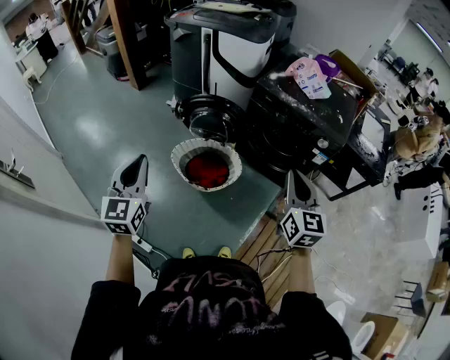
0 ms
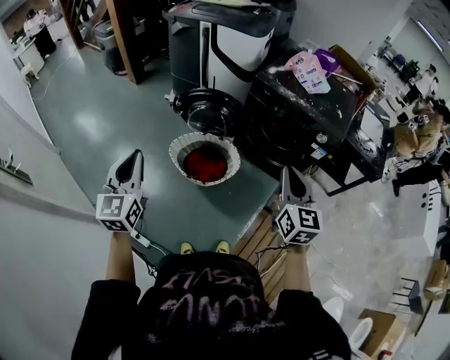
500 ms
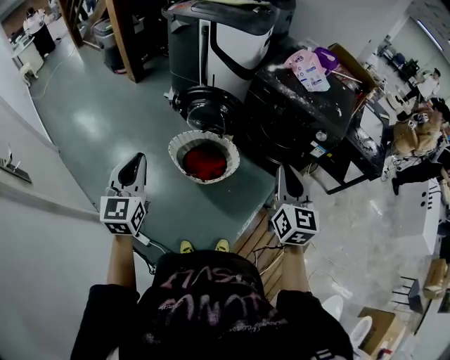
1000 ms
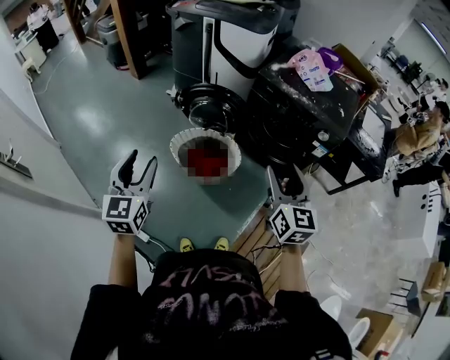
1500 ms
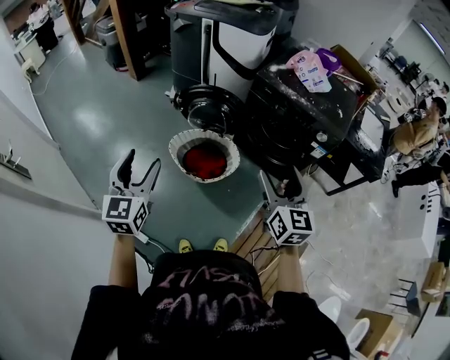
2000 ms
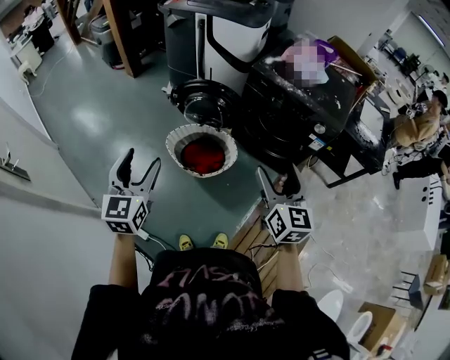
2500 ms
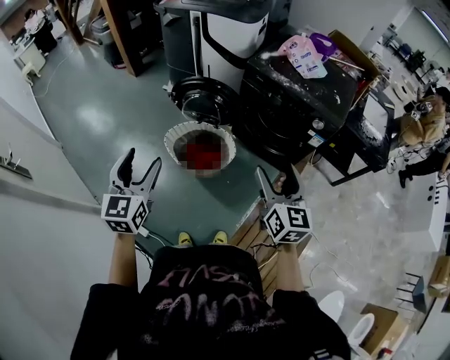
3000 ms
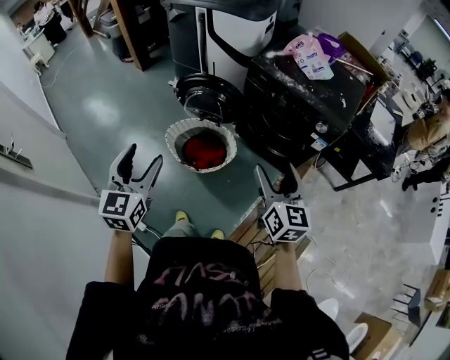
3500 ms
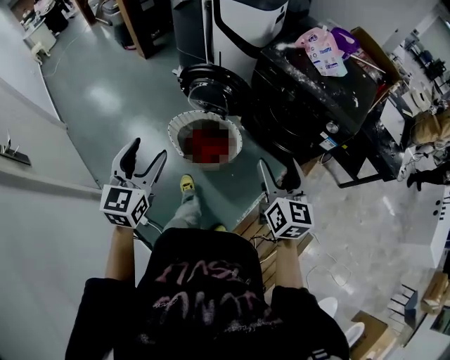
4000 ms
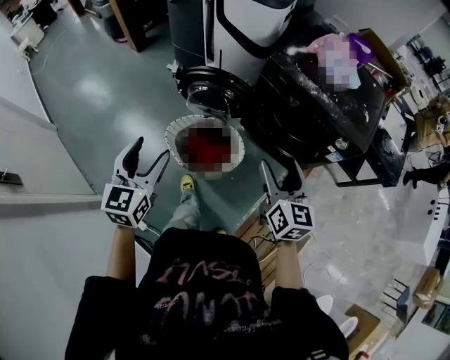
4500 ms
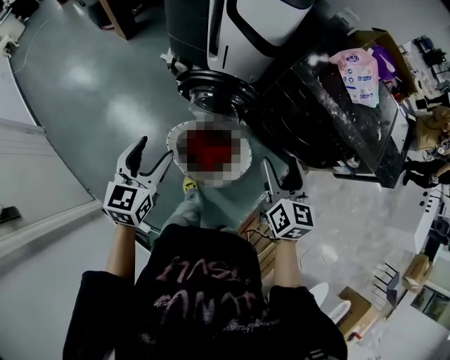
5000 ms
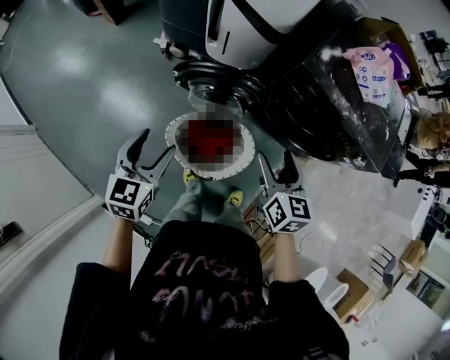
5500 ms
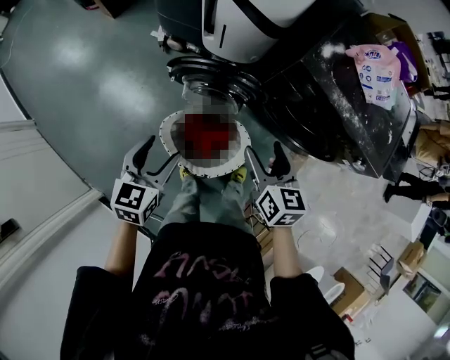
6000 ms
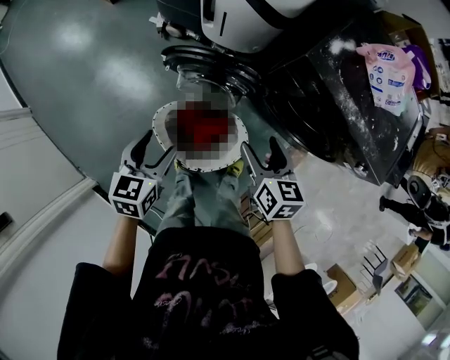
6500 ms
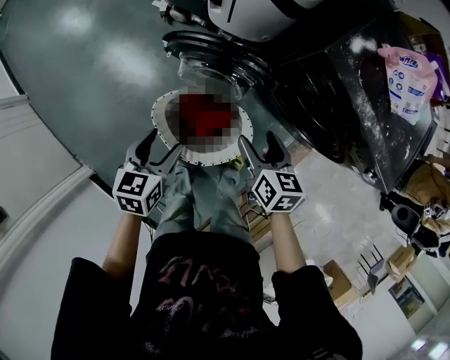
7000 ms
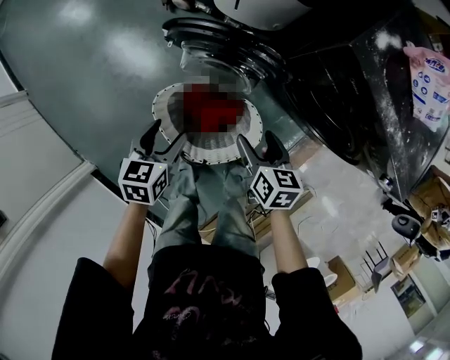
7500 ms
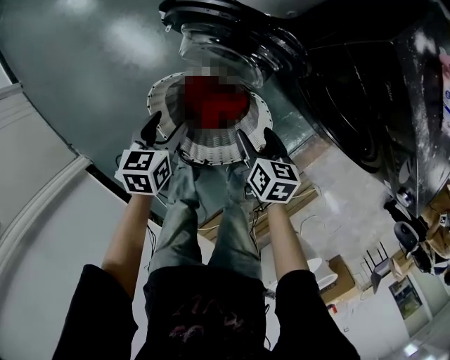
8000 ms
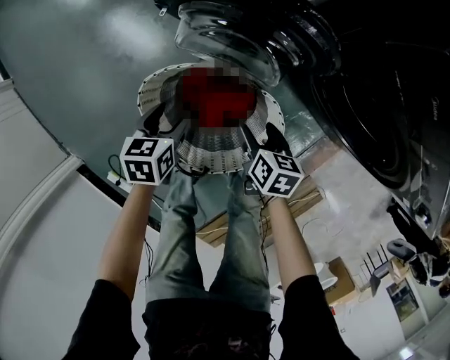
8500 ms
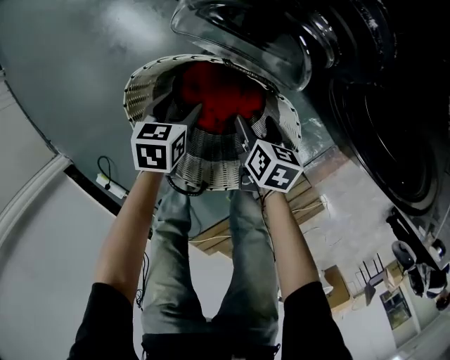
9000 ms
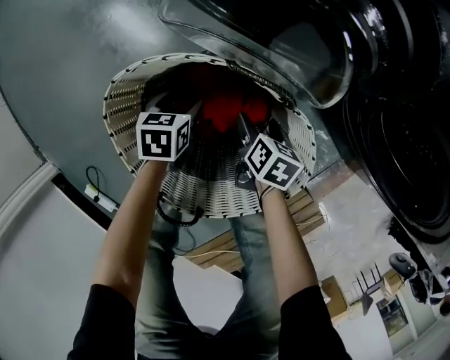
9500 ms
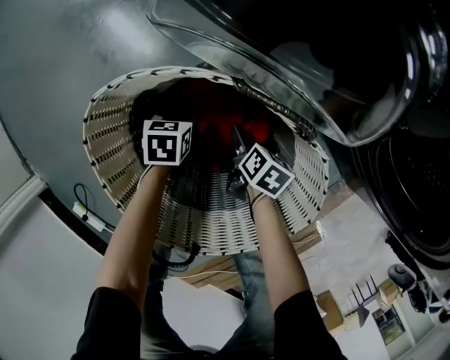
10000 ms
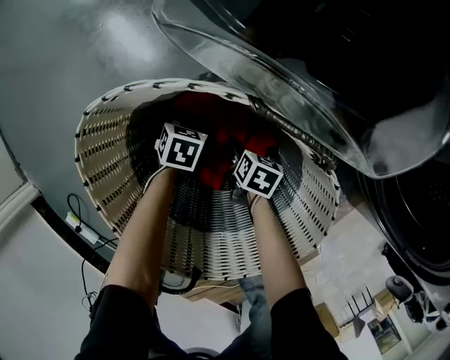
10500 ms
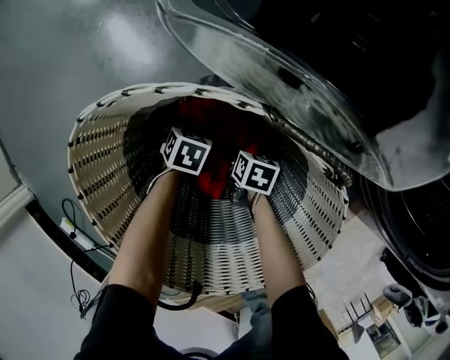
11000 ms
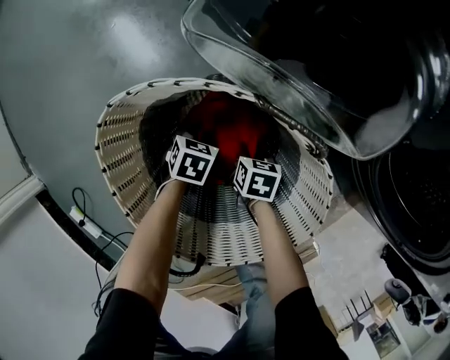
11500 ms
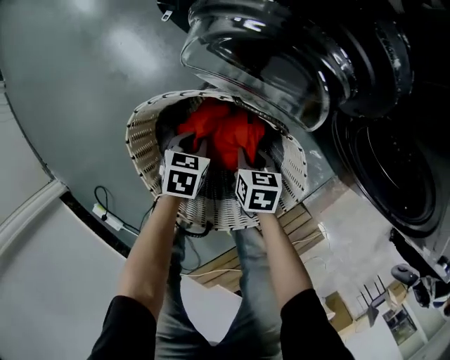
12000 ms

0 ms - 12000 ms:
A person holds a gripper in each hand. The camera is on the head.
0 ms - 2000 ms: The left gripper opens; the right gripper opens up.
2000 ms - 4000 ms: The left gripper heads to the right, covering approximately 10 cm; the right gripper travels downward, to the right and forward by roughly 10 cm.
4000 ms - 6000 ms: The left gripper moves forward and downward, about 35 cm, and swivels some 30 degrees; the right gripper moves forward, to the left and downward, approximately 35 cm, and swivels approximately 20 degrees.
6000 ms - 8000 ms: Both grippers travel together downward, about 30 cm. The right gripper turns by about 20 degrees. The left gripper changes its angle by approximately 30 degrees.
8000 ms - 10000 ms: Both grippers travel together downward, approximately 40 cm.
10000 ms - 12000 ms: Both grippers move upward, about 15 cm. The right gripper changes its angle by about 30 degrees, and closes. The left gripper closes up.

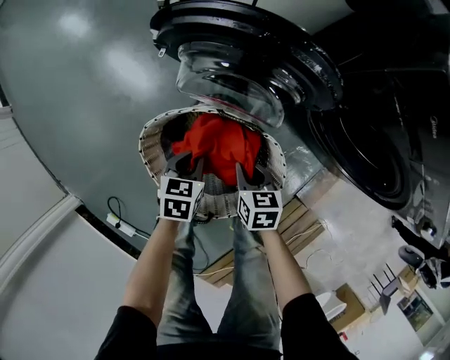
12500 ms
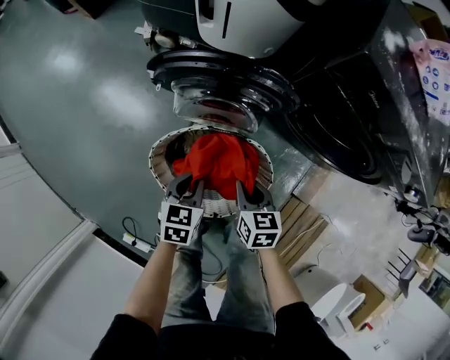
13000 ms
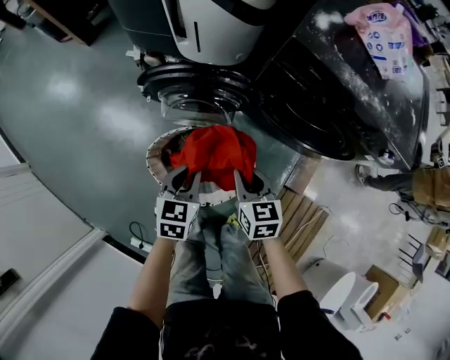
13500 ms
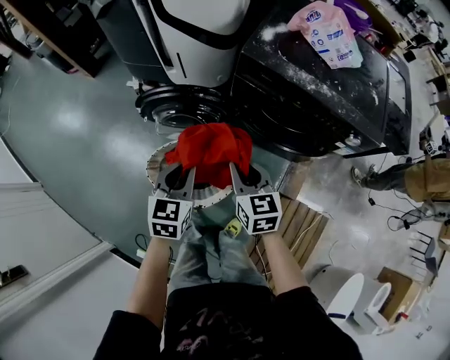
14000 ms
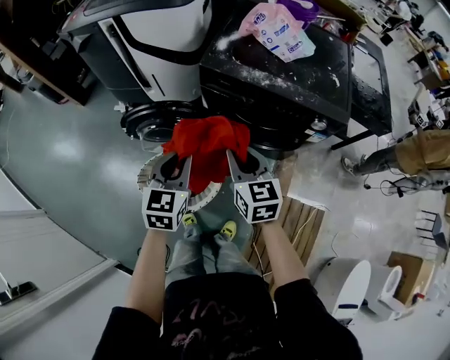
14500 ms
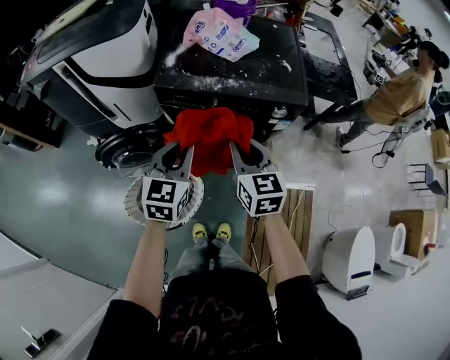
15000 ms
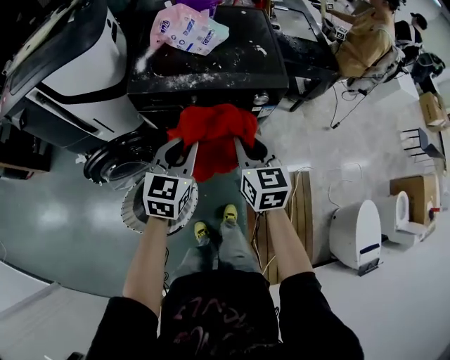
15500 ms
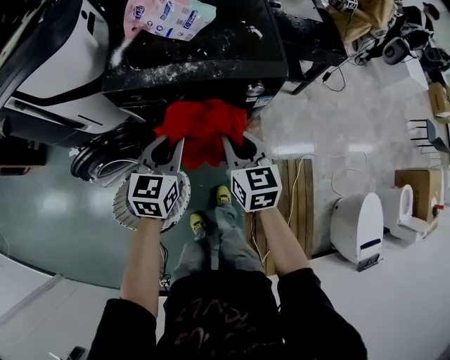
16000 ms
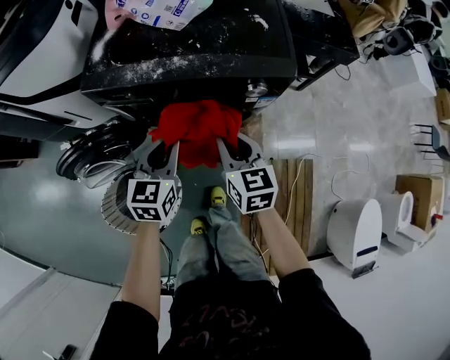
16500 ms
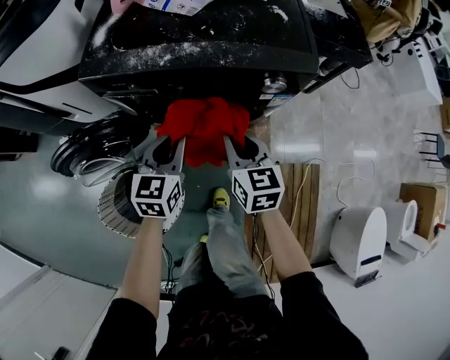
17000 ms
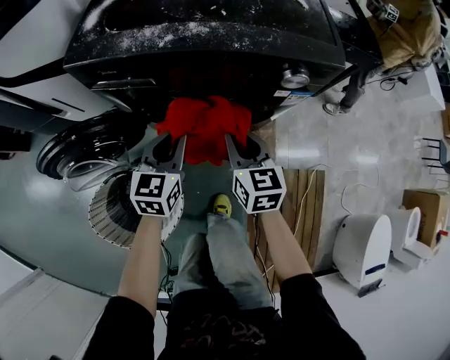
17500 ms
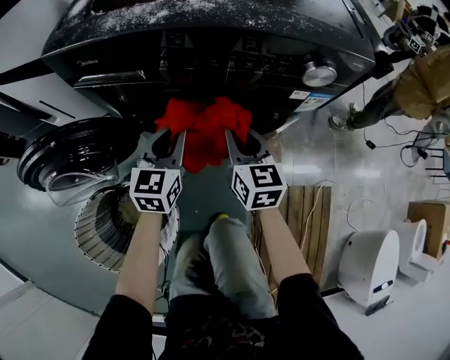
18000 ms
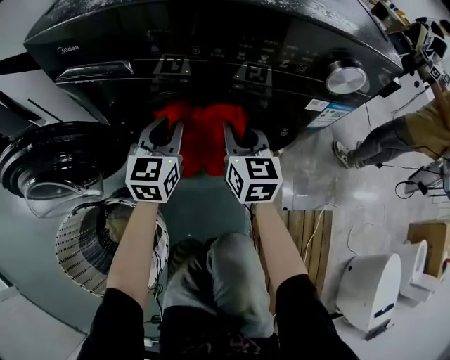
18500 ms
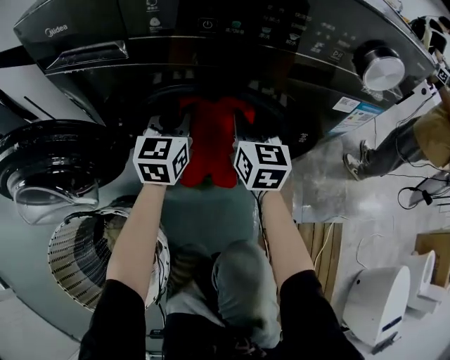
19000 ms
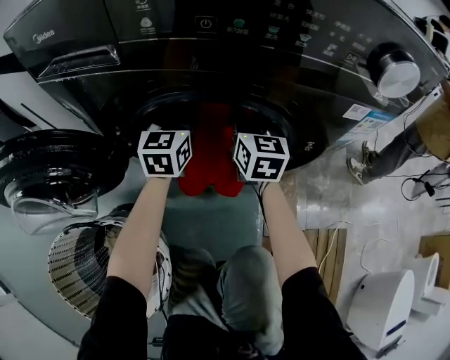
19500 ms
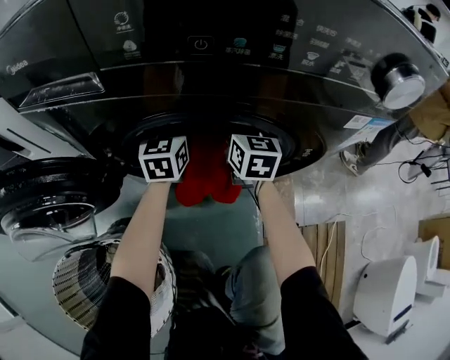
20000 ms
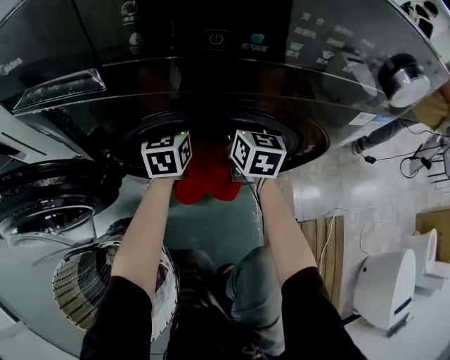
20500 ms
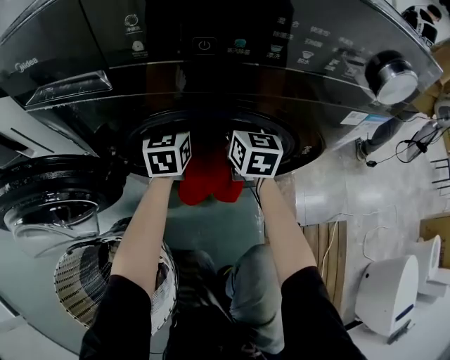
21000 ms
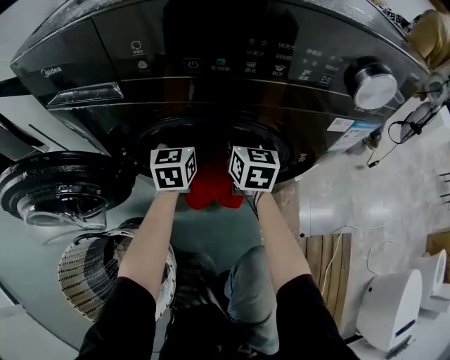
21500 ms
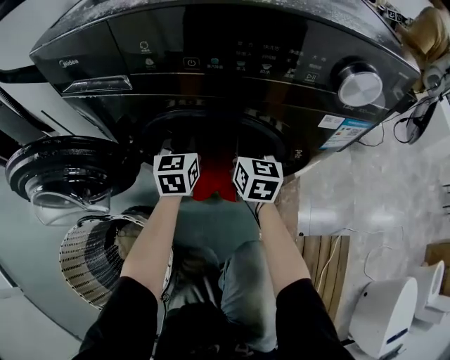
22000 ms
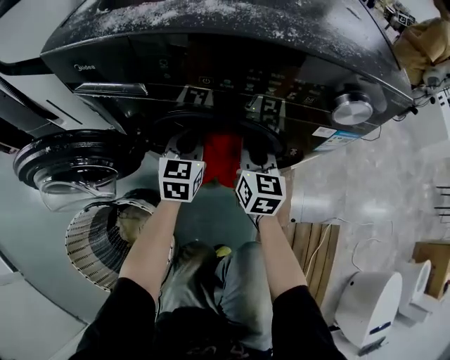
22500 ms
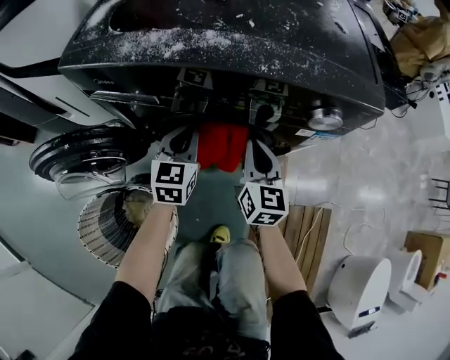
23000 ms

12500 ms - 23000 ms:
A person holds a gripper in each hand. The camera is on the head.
12500 ms - 14500 ms: The two grippers go approximately 50 cm upward. The left gripper changes its angle by some 40 degrees, while the right gripper tilts its fingers some 30 degrees upward.
14500 ms - 16500 ms: The right gripper moves about 25 cm. Meanwhile the left gripper shifts by about 25 cm.
16500 ms - 19000 ms: The grippers both shift downward and forward by roughly 35 cm.
19000 ms - 21000 ms: The right gripper goes roughly 5 cm forward, and opens; the left gripper shifts some 10 cm forward and downward, and opens up.
21000 ms - 23000 ms: The two grippers go about 20 cm backward and upward. The right gripper closes its fingers; the left gripper closes its fingers.

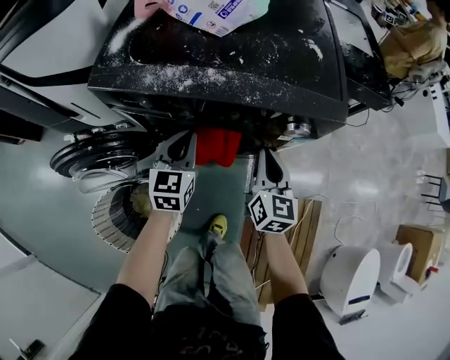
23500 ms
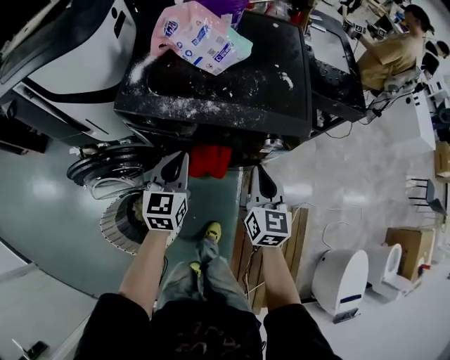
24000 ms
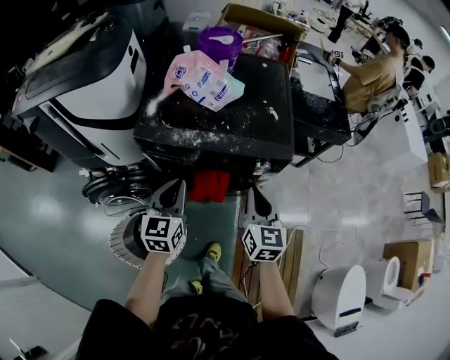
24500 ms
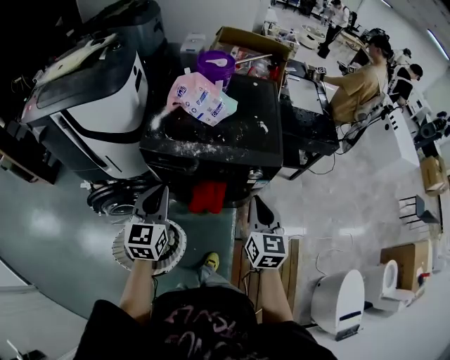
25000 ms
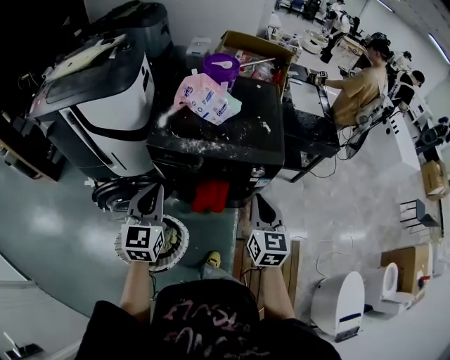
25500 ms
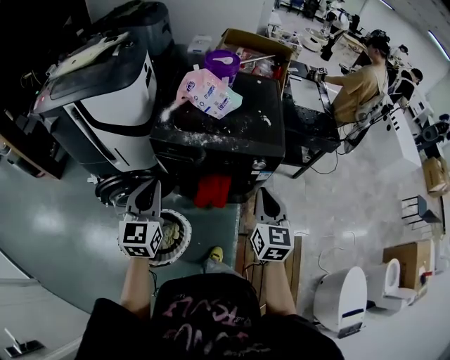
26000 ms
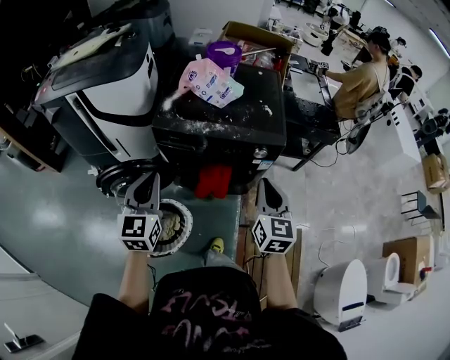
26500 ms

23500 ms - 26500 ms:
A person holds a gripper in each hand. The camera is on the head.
23500 ms - 25000 ms: Both grippers travel together upward and backward, roughly 30 cm.
25000 ms - 26500 ms: Both grippers move backward, roughly 5 cm.

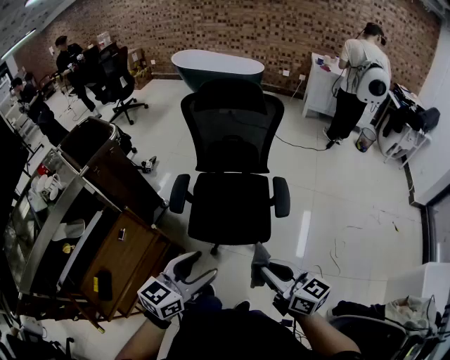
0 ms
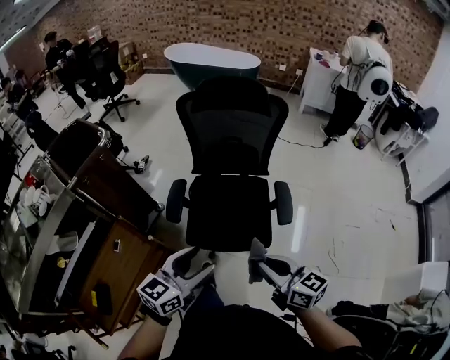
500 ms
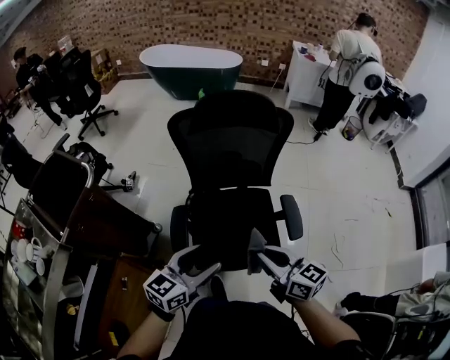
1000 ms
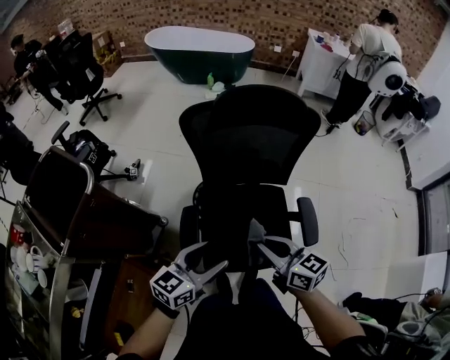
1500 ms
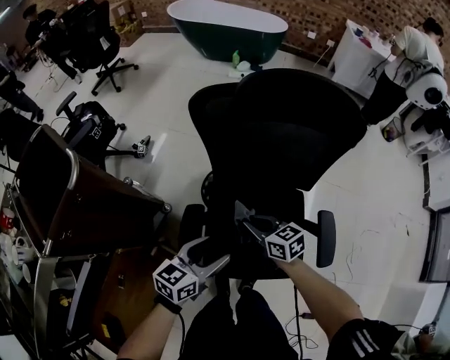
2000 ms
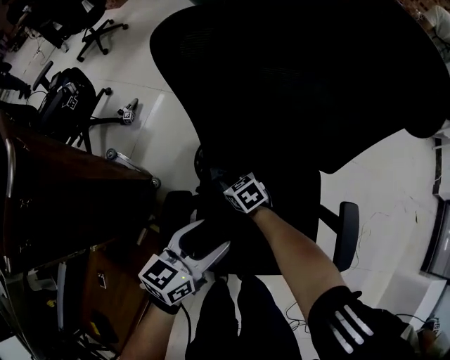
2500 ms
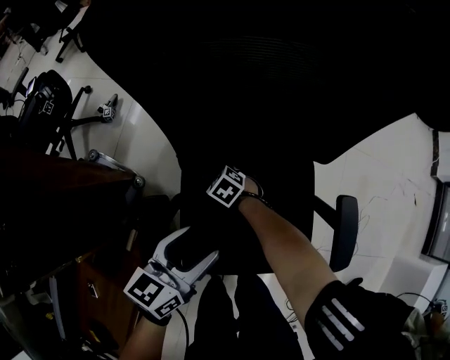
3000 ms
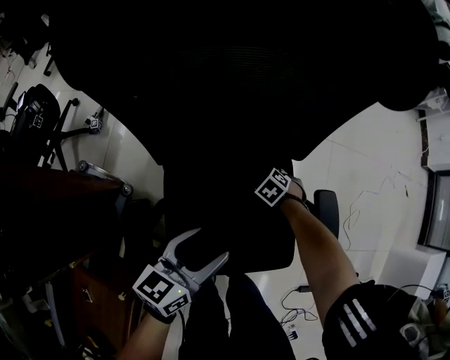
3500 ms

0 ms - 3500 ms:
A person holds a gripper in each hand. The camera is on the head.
0 ms - 2000 ms: The two grippers travel together, forward, roughly 50 cm. Both grippers move downward, about 20 cm. The right gripper changes its angle by roughly 20 degrees.
2000 ms - 3500 ms: The left gripper moves roughly 15 cm; the right gripper goes roughly 35 cm downward, and tips its fingers downward by about 50 degrees.
